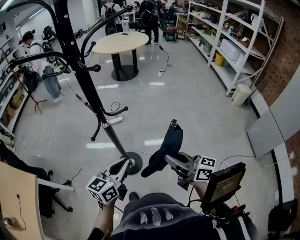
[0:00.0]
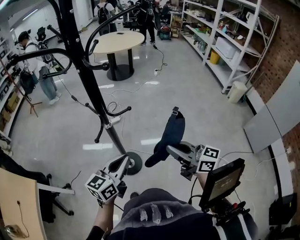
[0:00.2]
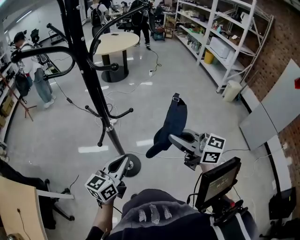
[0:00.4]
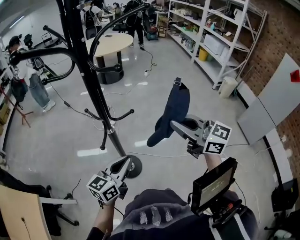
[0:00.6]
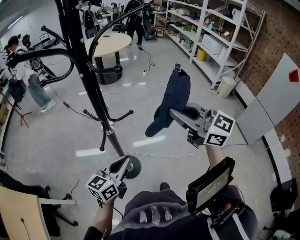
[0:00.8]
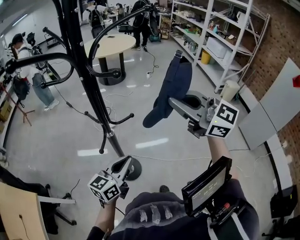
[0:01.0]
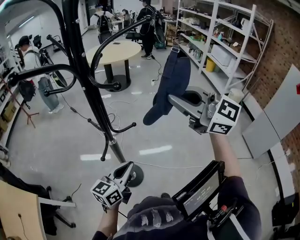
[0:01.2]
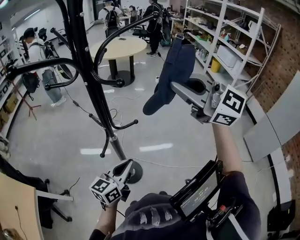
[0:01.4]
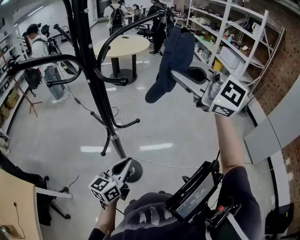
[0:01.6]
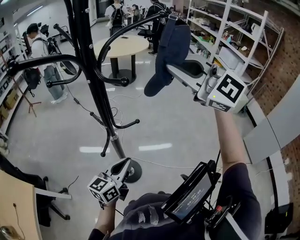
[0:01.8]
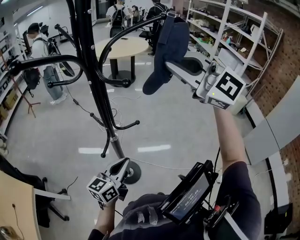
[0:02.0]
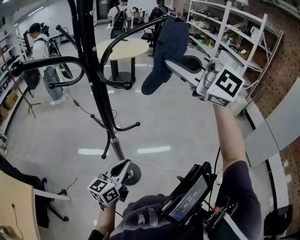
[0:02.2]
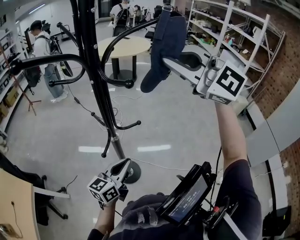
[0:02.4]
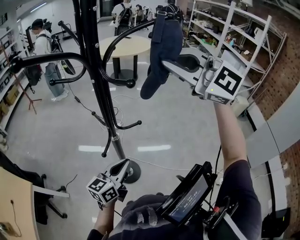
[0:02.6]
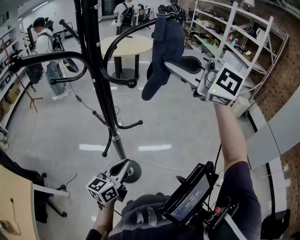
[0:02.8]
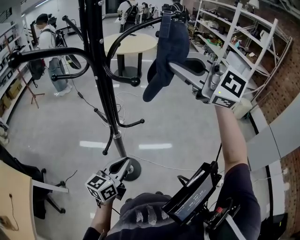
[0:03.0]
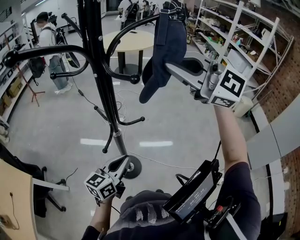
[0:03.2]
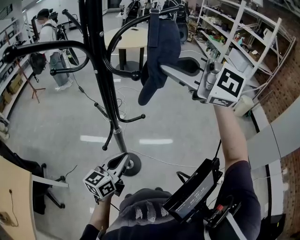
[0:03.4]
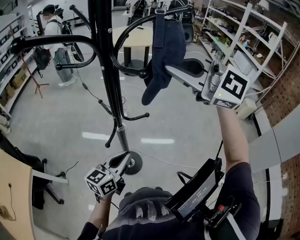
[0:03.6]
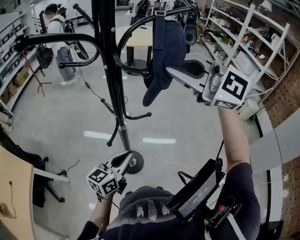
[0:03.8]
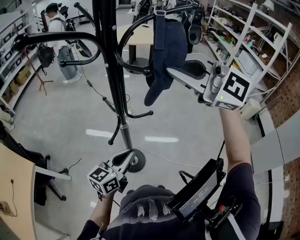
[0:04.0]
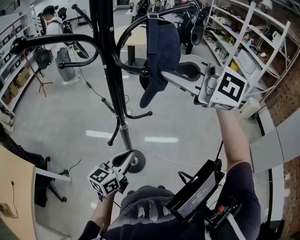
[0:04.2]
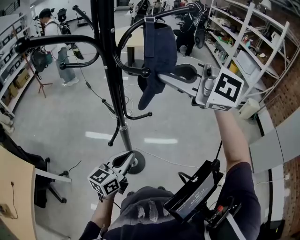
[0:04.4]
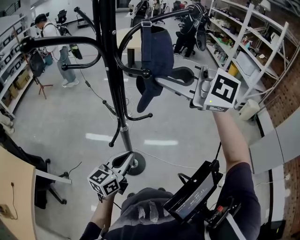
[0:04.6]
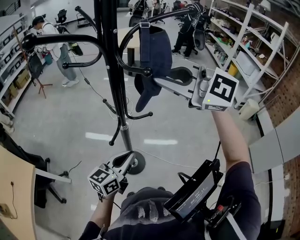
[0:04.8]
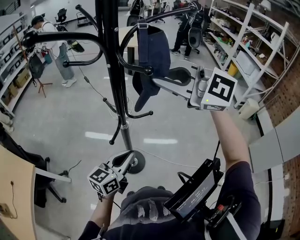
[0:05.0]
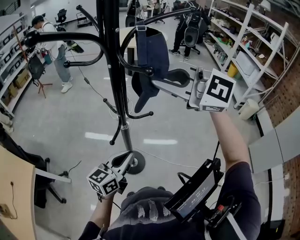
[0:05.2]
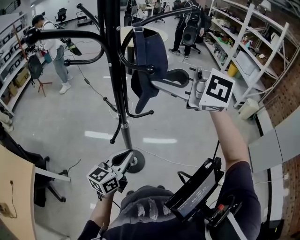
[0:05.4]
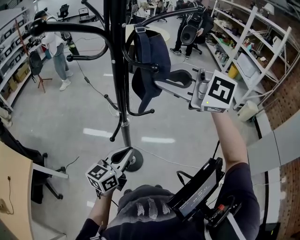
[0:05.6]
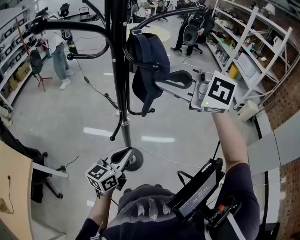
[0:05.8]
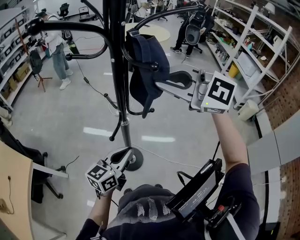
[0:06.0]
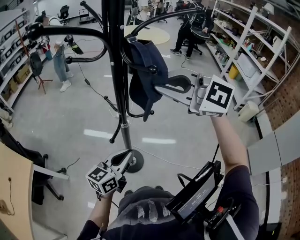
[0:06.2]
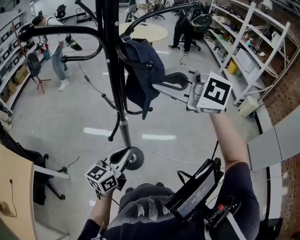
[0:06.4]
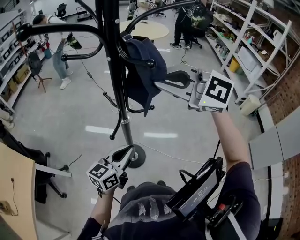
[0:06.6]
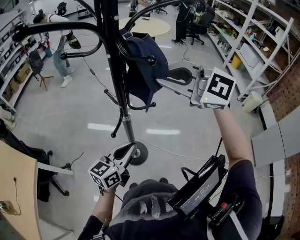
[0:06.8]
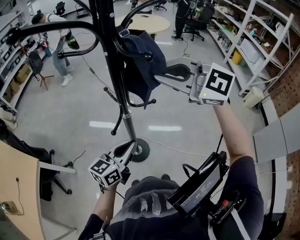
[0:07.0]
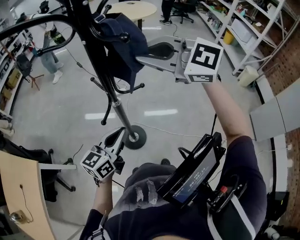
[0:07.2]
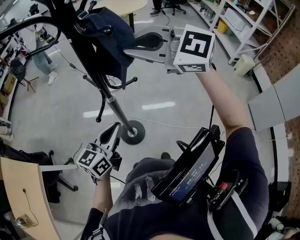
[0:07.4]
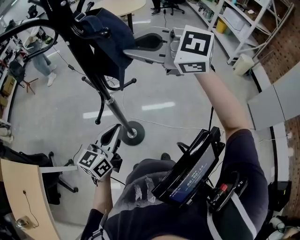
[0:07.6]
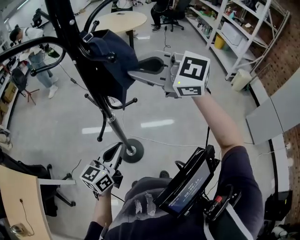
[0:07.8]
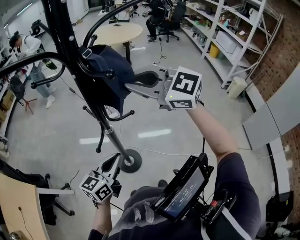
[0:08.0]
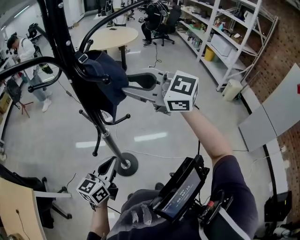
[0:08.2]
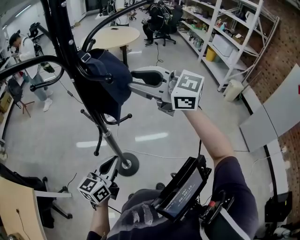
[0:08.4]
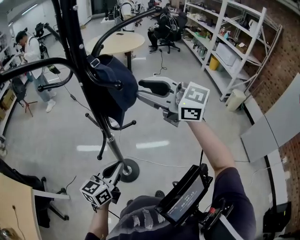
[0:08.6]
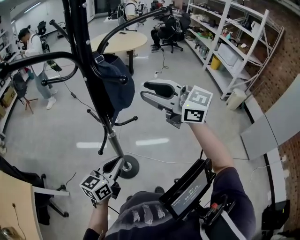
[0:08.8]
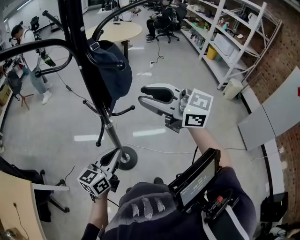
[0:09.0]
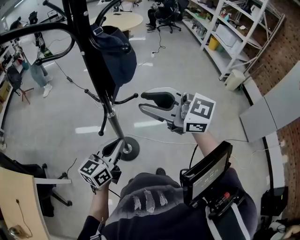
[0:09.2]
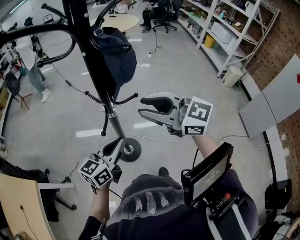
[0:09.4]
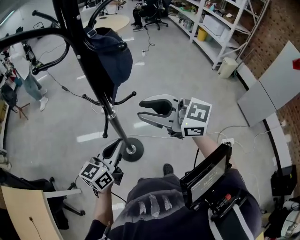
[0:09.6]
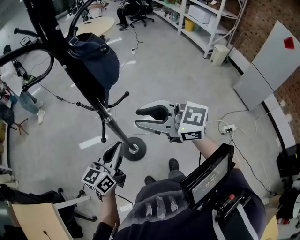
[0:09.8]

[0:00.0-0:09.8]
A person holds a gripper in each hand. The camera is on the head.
0.0 to 1.4 s: The right gripper is displaced upward and forward by approximately 30 cm, and rotates around the line of its fingers by roughly 60 degrees, counterclockwise from behind. Meanwhile the left gripper is displaced forward by some 5 cm.
1.4 to 2.8 s: The right gripper moves forward, roughly 5 cm.
2.8 to 4.2 s: The right gripper heads to the left, covering some 5 cm.
4.2 to 5.6 s: The grippers move only a little.
5.6 to 7.0 s: The grippers make only small movements.
7.0 to 8.4 s: The right gripper changes place by approximately 5 cm, swivels some 20 degrees, and opens up.
8.4 to 9.8 s: The right gripper is displaced backward and downward by roughly 20 cm.

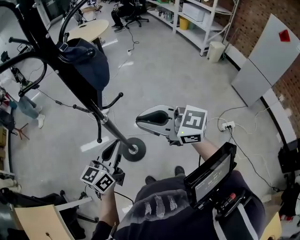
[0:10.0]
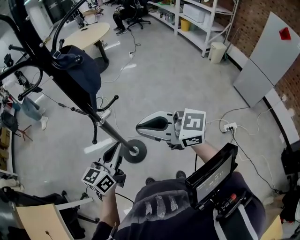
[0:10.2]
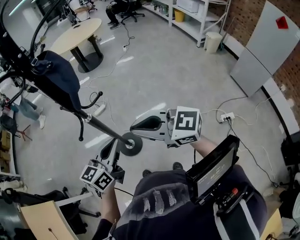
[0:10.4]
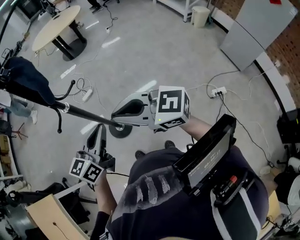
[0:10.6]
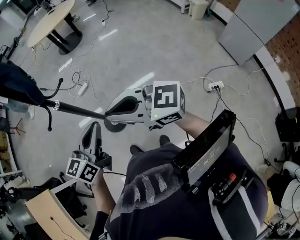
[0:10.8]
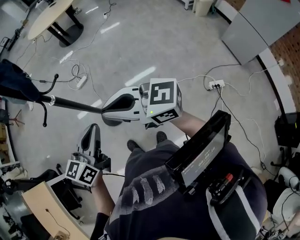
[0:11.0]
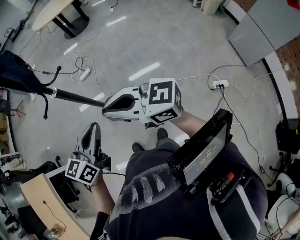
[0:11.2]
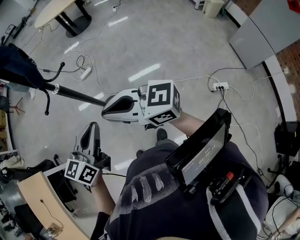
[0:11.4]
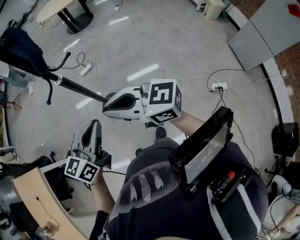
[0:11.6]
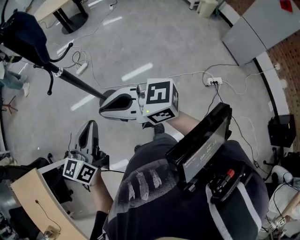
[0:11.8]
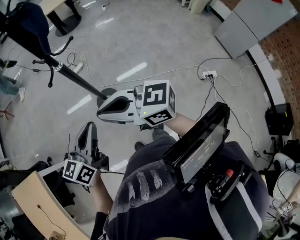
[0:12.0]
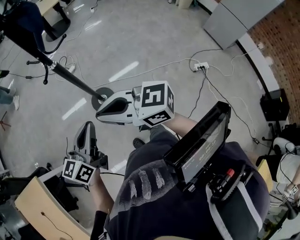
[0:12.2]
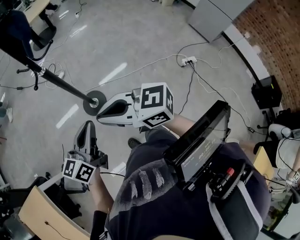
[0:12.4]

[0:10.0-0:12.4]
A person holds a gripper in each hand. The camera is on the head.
10.0 to 11.2 s: Both grippers travel together to the right and backward, approximately 20 cm. The right gripper turns by about 20 degrees.
11.2 to 12.4 s: The grippers both shift to the left and backward by approximately 20 cm.

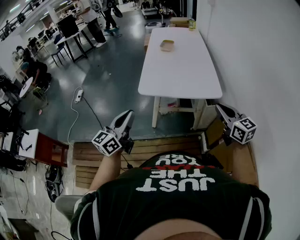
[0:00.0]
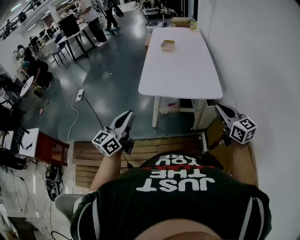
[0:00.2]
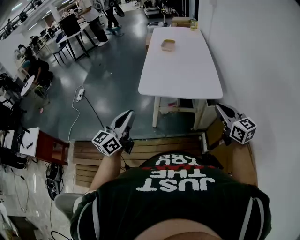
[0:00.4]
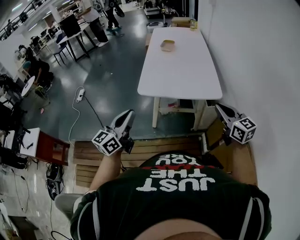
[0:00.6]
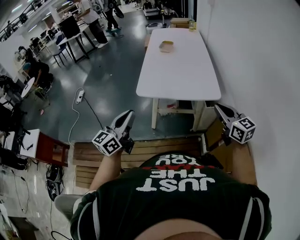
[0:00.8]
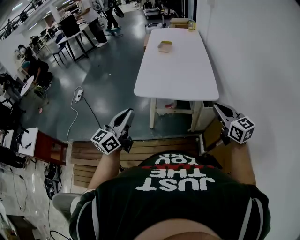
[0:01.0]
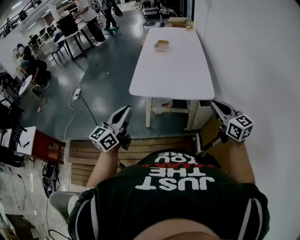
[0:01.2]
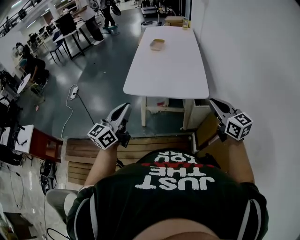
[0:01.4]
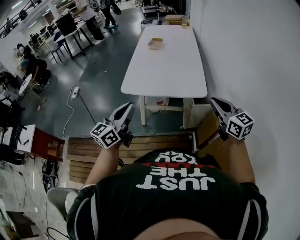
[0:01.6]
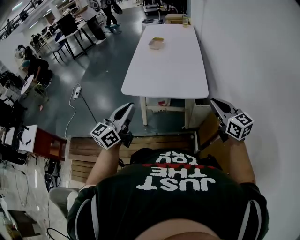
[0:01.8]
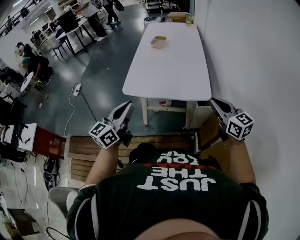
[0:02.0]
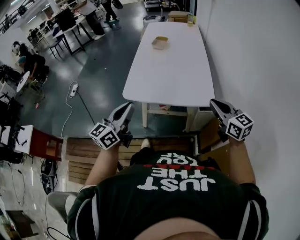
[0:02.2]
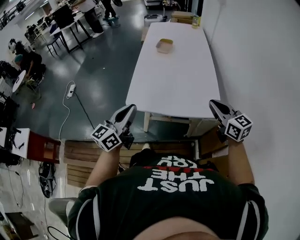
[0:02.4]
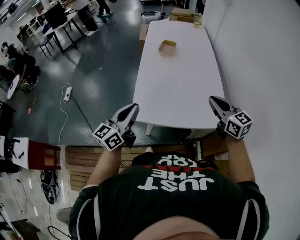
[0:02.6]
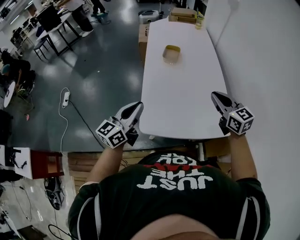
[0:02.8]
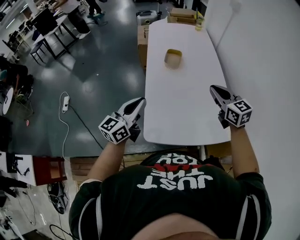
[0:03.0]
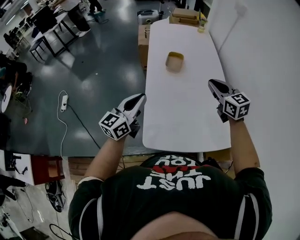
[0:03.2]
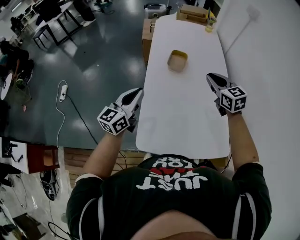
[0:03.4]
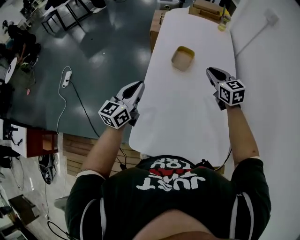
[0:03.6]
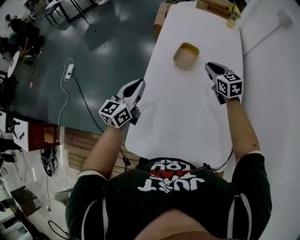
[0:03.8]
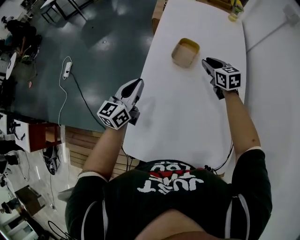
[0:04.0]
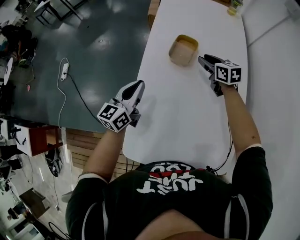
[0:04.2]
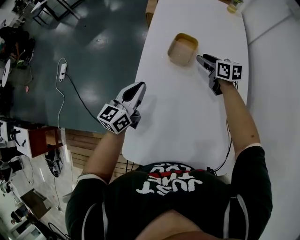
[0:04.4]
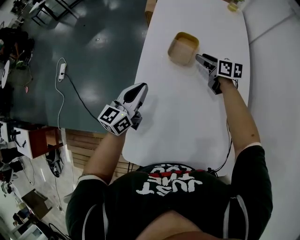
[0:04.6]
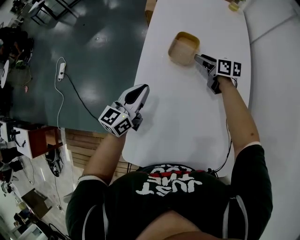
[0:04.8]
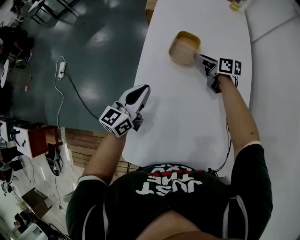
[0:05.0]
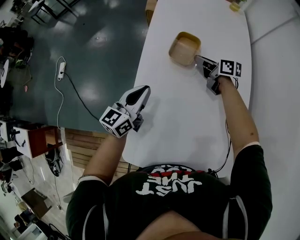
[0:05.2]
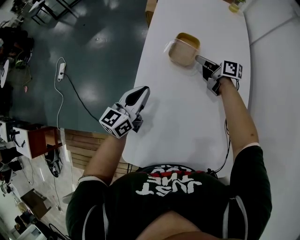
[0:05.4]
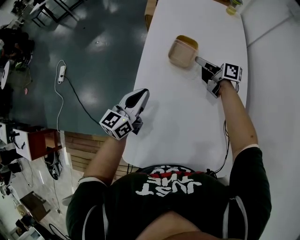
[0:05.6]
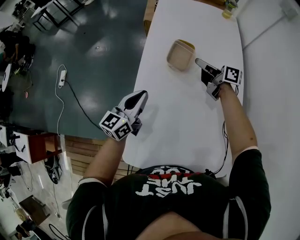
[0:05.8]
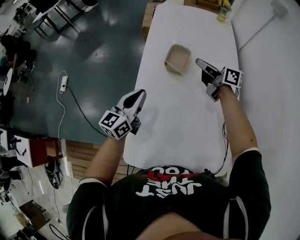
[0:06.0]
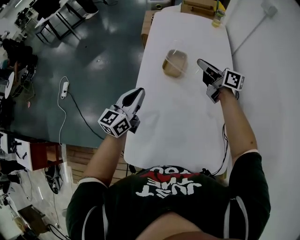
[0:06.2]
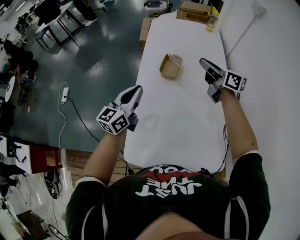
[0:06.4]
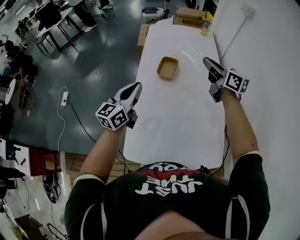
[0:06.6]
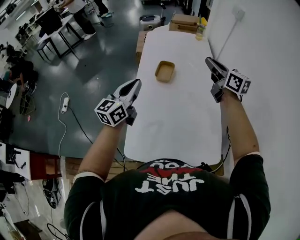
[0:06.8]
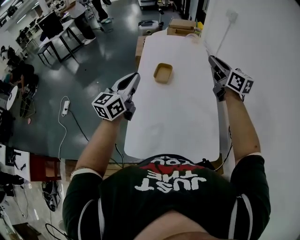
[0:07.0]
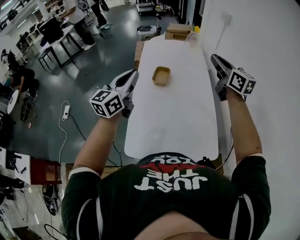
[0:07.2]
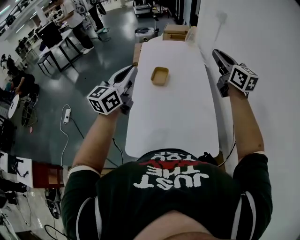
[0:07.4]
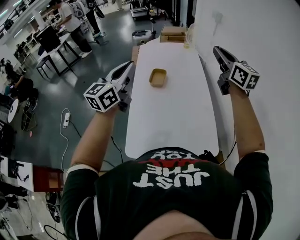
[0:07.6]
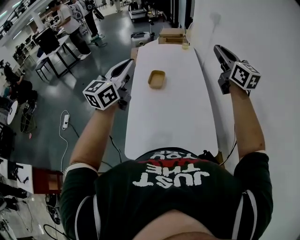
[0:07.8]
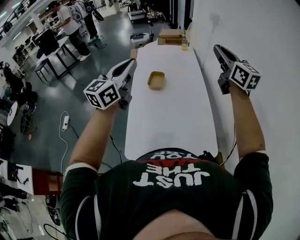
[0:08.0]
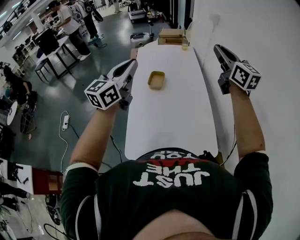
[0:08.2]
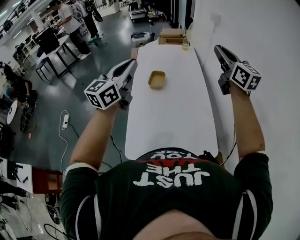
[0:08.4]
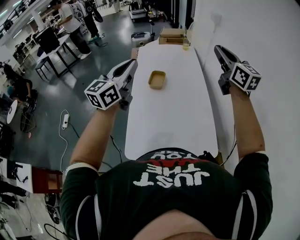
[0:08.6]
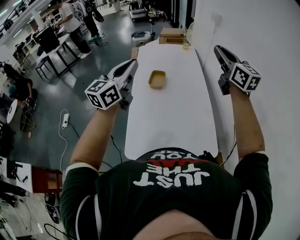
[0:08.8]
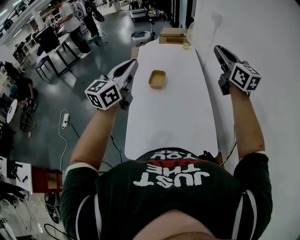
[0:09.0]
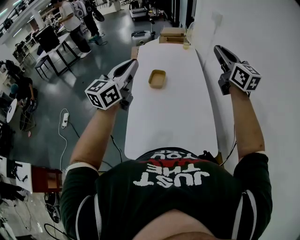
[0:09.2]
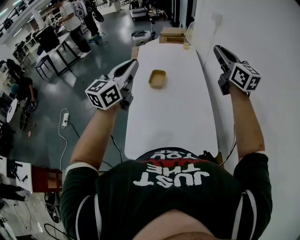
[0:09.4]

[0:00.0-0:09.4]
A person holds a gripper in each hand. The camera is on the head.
0.0 to 1.6 s: Both grippers travel together to the right, approximately 10 cm.
1.6 to 3.2 s: The two grippers travel together, forward, roughly 50 cm.
3.2 to 4.8 s: The right gripper moves forward and downward, roughly 40 cm, changes its angle by some 40 degrees, and opens its fingers. The left gripper shifts some 25 cm forward, downward and to the right.
4.8 to 6.2 s: The right gripper shifts roughly 15 cm upward, turns by approximately 30 degrees, and closes its fingers. The left gripper travels upward by roughly 5 cm.
6.2 to 7.8 s: The right gripper travels upward, backward and to the right by about 40 cm, and swivels about 50 degrees. Meanwhile the left gripper shifts approximately 30 cm upward.
7.8 to 9.4 s: Both grippers stay about where they are.

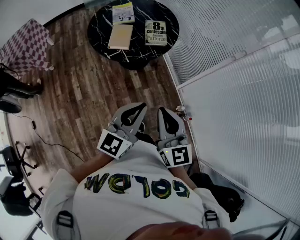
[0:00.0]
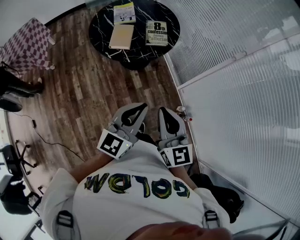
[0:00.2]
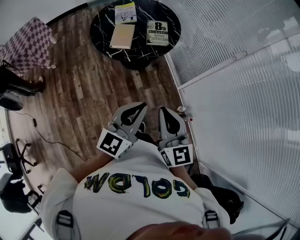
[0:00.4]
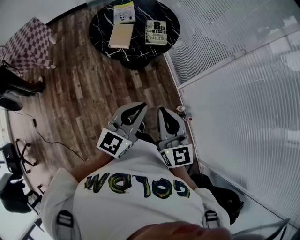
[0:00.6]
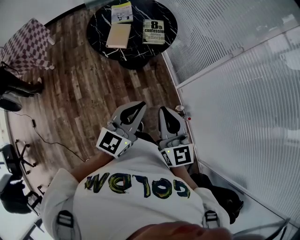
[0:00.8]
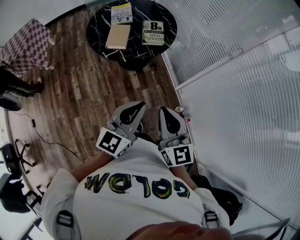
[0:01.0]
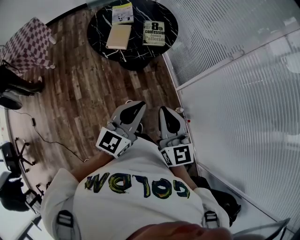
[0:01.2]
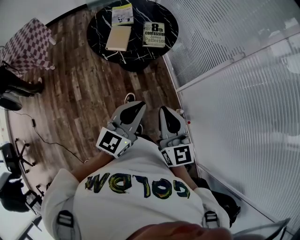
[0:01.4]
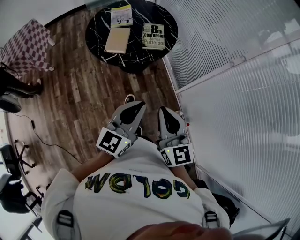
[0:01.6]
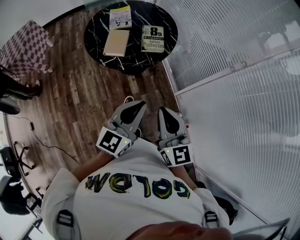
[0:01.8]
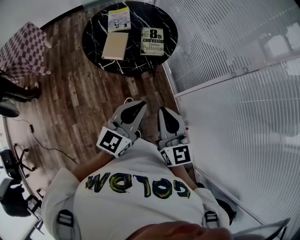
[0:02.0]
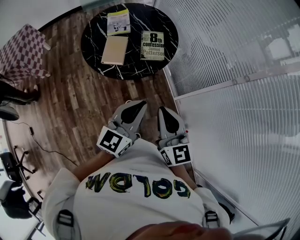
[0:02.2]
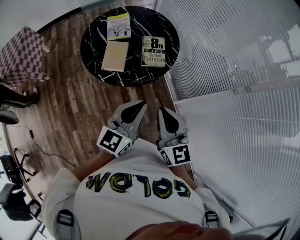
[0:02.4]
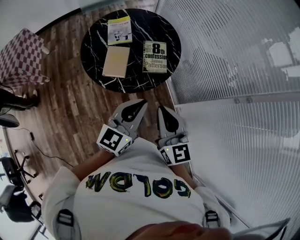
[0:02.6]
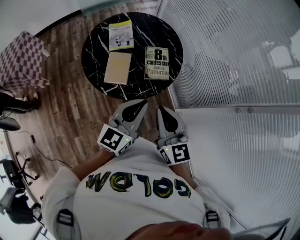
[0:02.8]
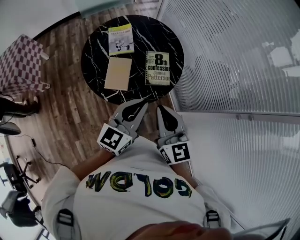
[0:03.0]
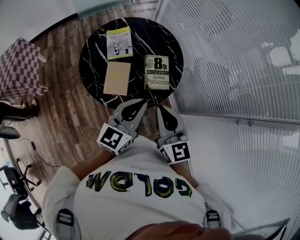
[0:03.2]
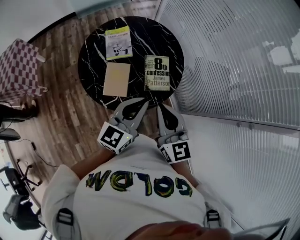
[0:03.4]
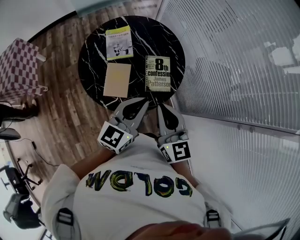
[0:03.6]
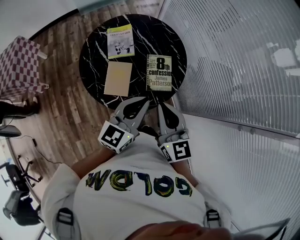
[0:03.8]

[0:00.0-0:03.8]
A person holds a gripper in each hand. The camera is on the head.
0.0 to 1.2 s: There are only small adjustments of the grippers.
1.2 to 2.6 s: The grippers both shift forward by about 25 cm.
2.6 to 3.8 s: The two grippers go approximately 15 cm forward.
